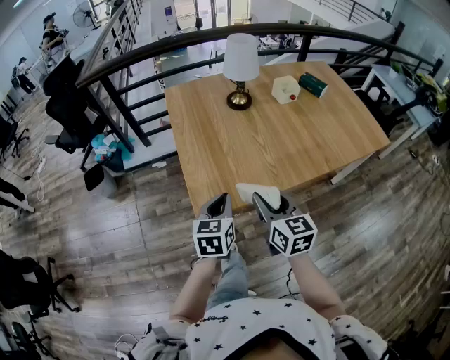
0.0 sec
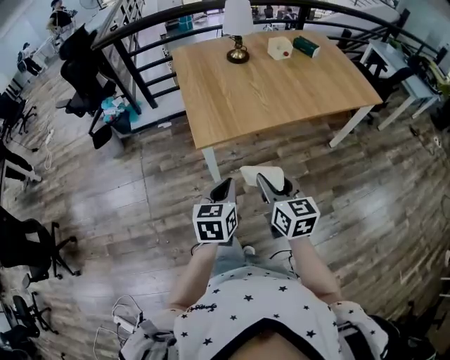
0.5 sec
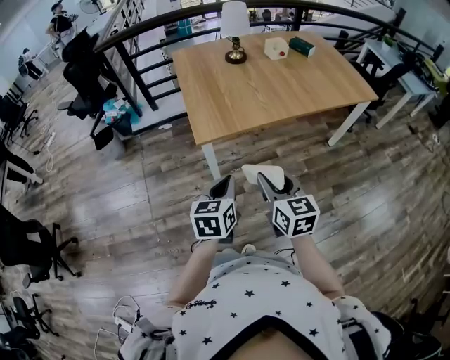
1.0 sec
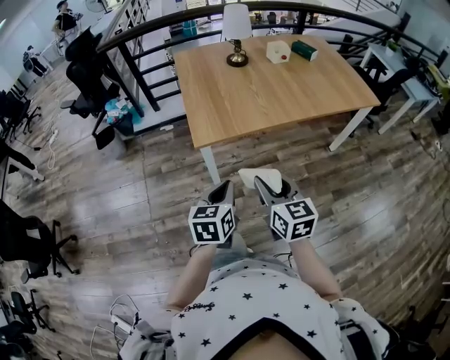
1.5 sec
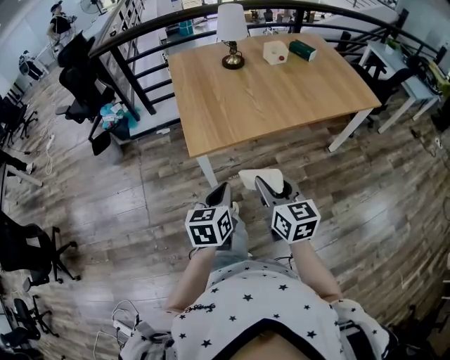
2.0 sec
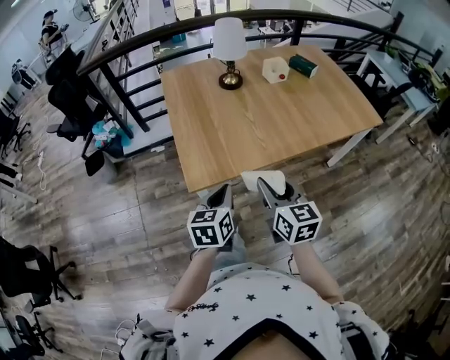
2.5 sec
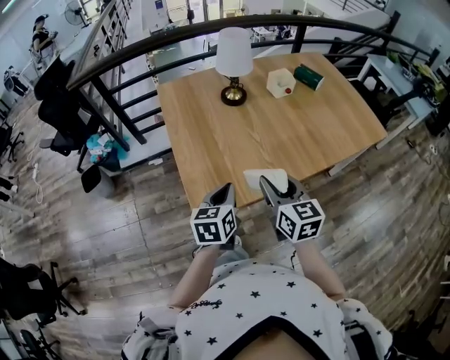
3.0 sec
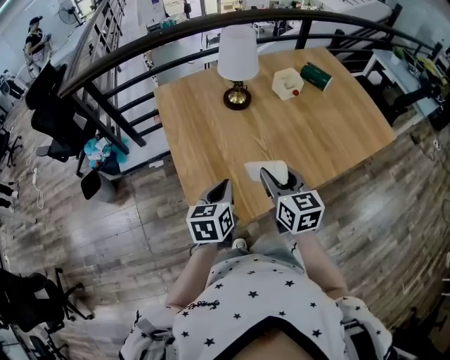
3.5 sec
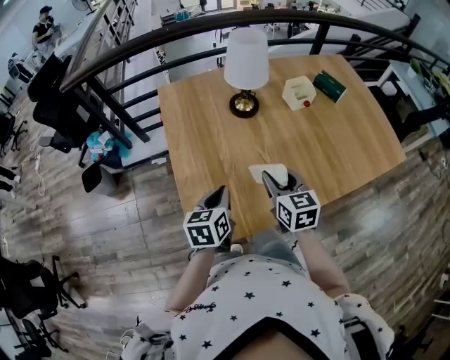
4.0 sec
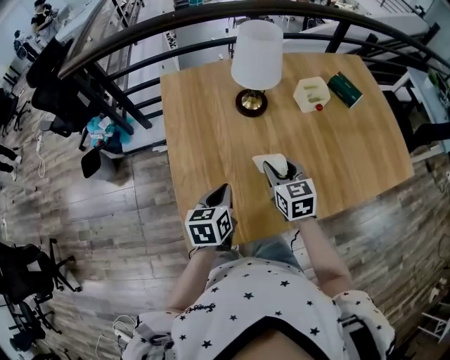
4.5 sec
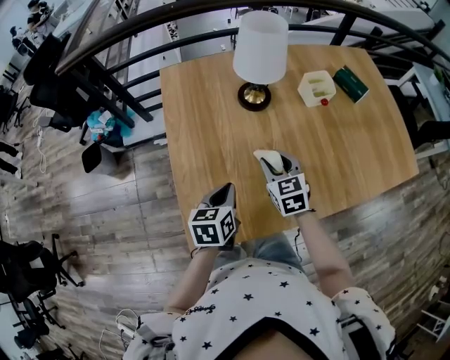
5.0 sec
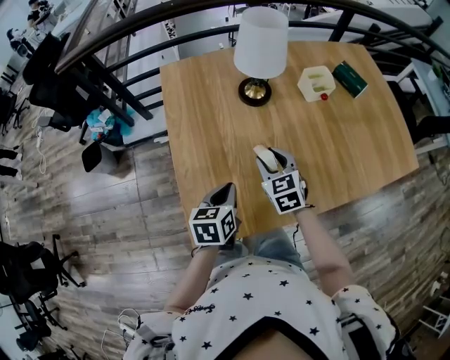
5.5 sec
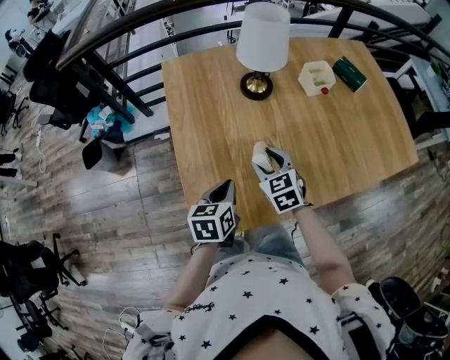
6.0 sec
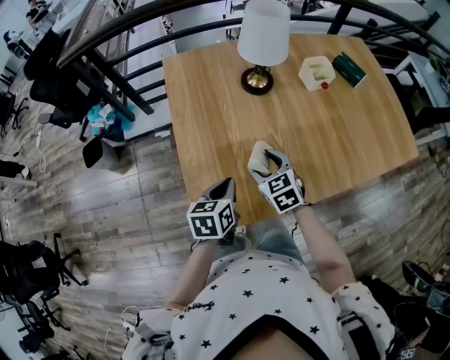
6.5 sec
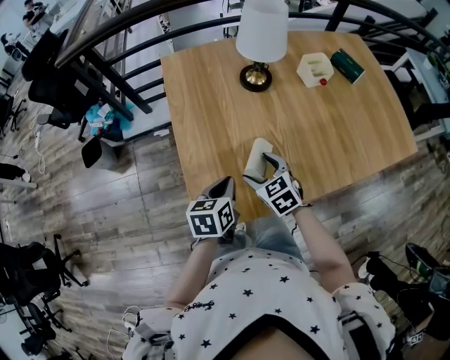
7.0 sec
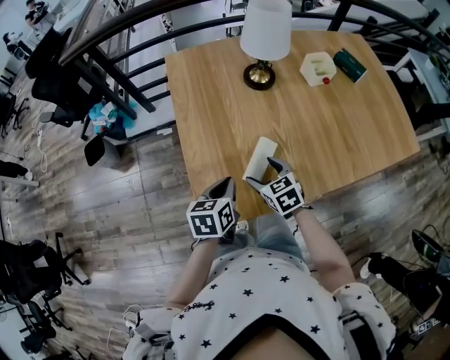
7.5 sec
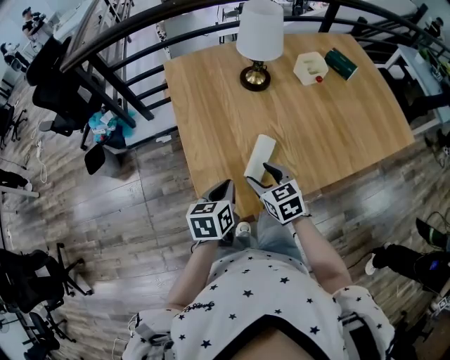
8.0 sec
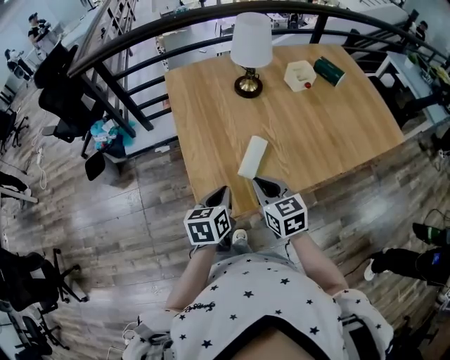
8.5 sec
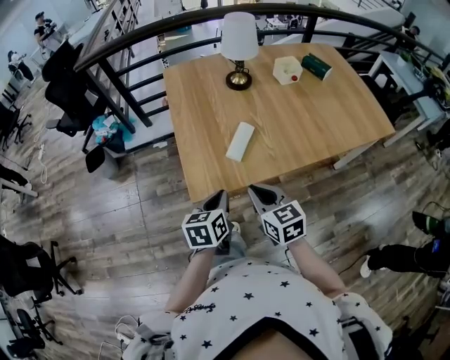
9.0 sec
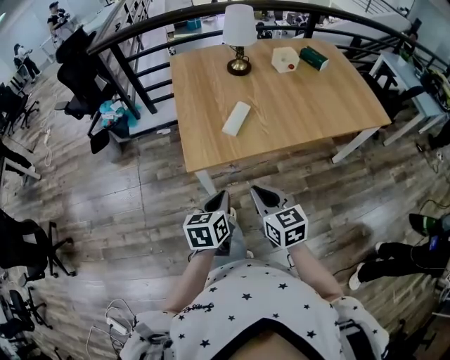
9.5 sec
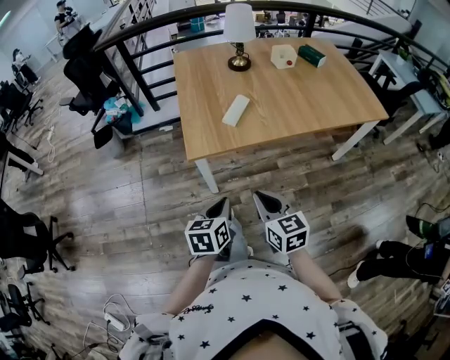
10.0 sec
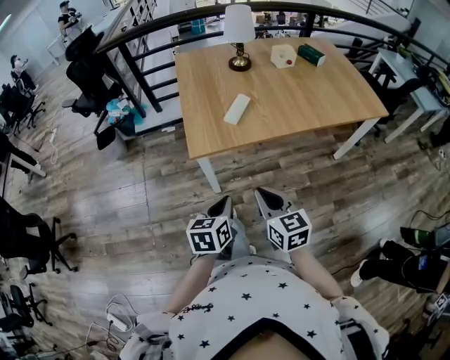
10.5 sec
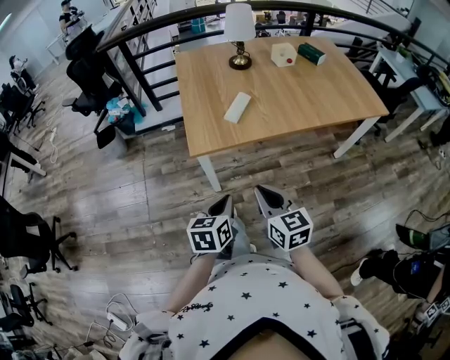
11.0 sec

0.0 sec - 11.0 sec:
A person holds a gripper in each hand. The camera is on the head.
0.0 sec - 2.0 sec: The two grippers go about 20 cm backward.
2.0 sec - 3.5 sec: The grippers both shift forward by approximately 35 cm.
3.5 sec - 5.5 sec: The left gripper goes roughly 10 cm forward and downward. Meanwhile the right gripper shifts about 20 cm forward and downward, and rotates some 30 degrees.
5.5 sec - 7.5 sec: The right gripper shifts some 15 cm backward, downward and to the left, and opens its fingers. The left gripper moves about 5 cm.
7.5 sec - 9.0 sec: The right gripper heads backward and upward, covering roughly 25 cm, rotates approximately 20 degrees, and closes; the left gripper is displaced backward by approximately 15 cm.
9.0 sec - 11.0 sec: The two grippers go some 20 cm backward.

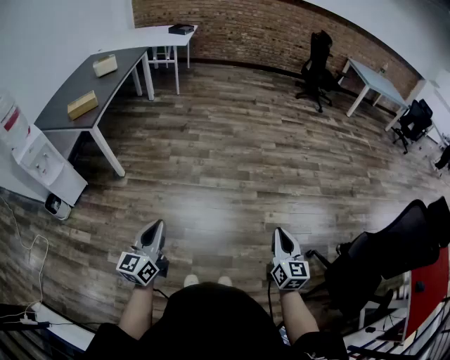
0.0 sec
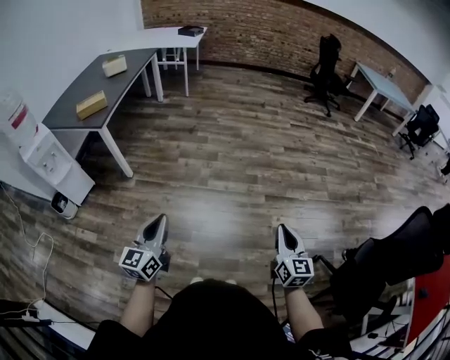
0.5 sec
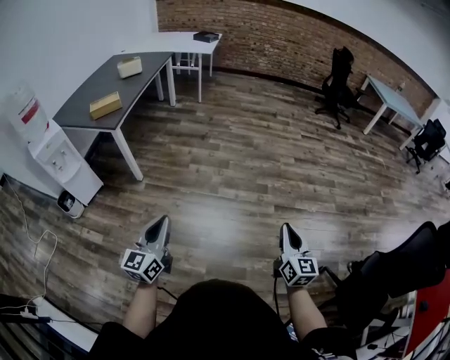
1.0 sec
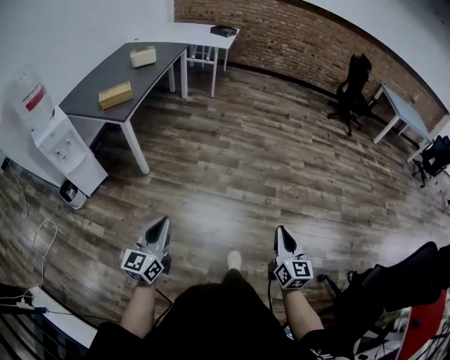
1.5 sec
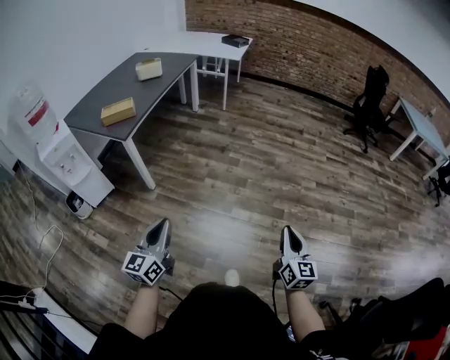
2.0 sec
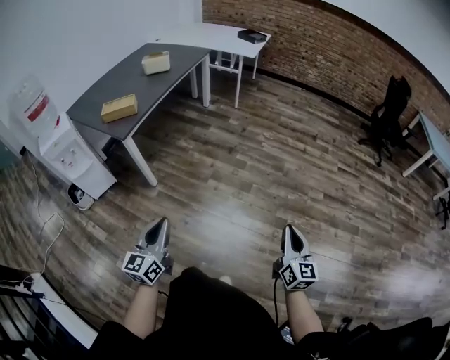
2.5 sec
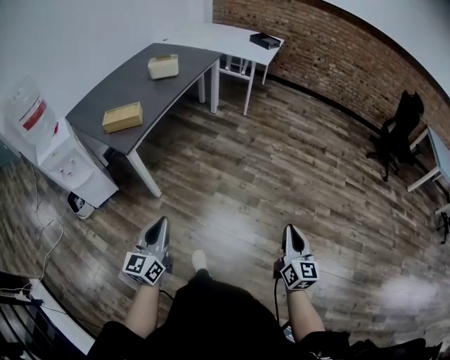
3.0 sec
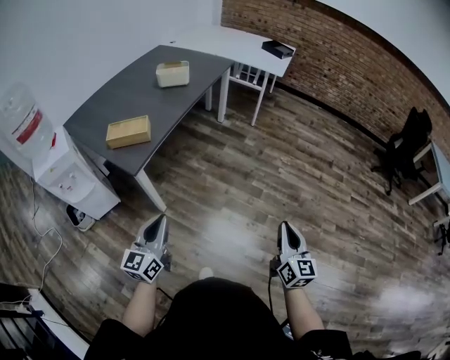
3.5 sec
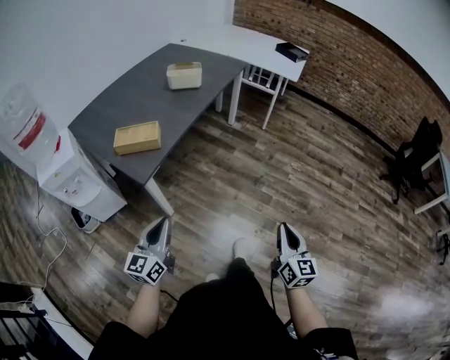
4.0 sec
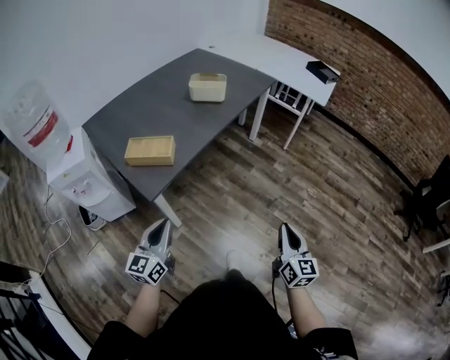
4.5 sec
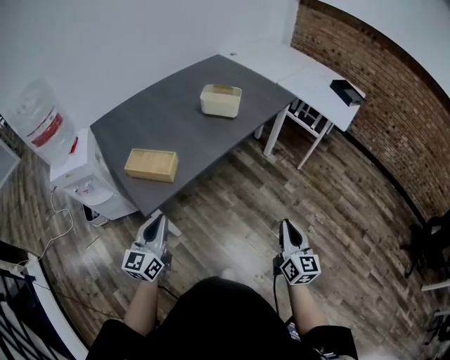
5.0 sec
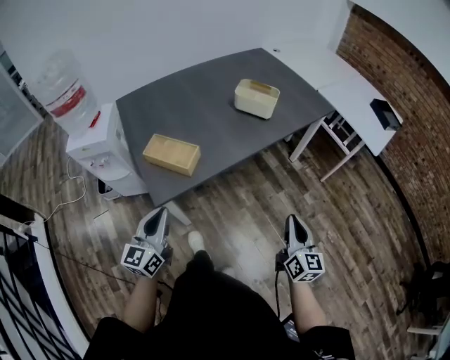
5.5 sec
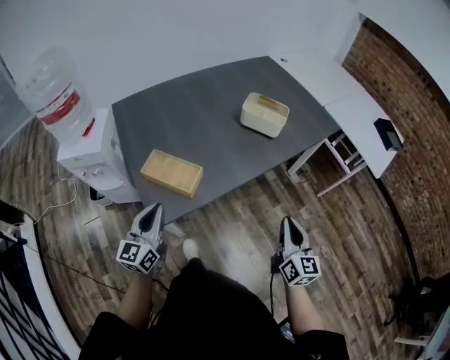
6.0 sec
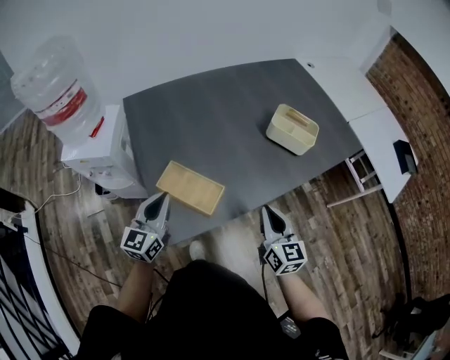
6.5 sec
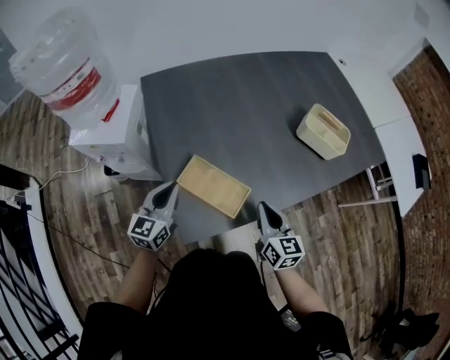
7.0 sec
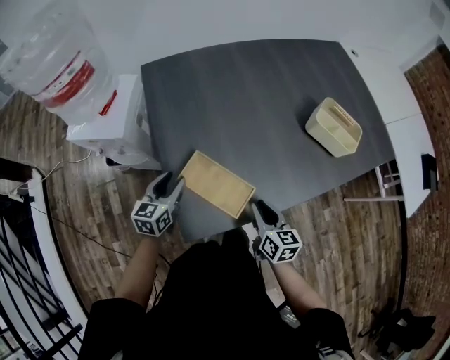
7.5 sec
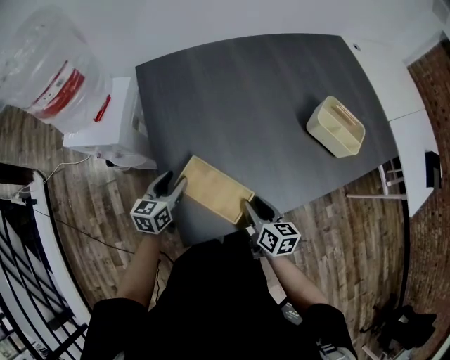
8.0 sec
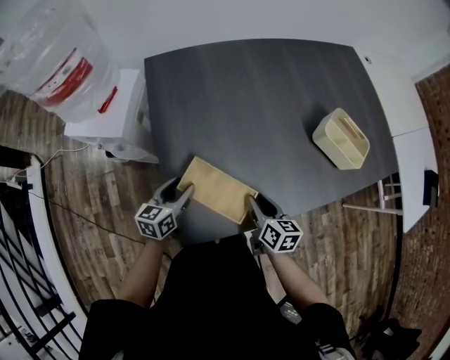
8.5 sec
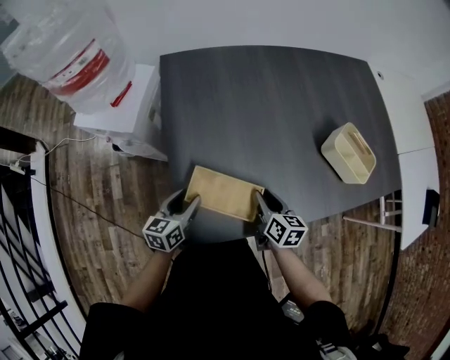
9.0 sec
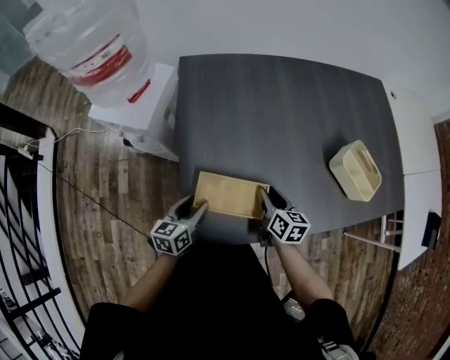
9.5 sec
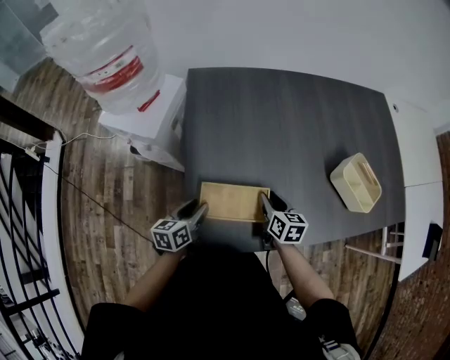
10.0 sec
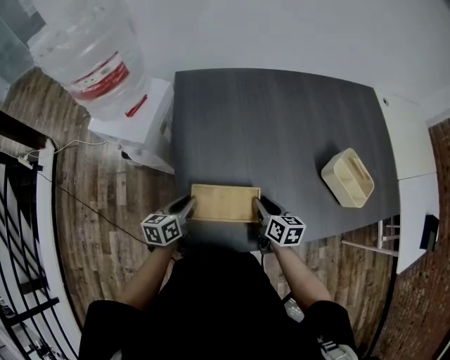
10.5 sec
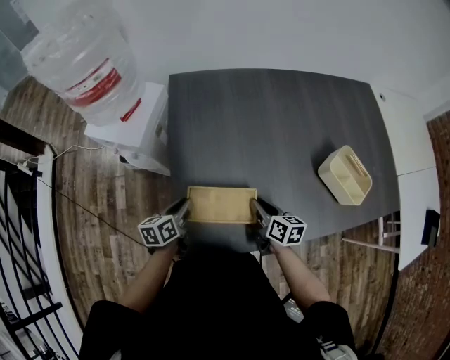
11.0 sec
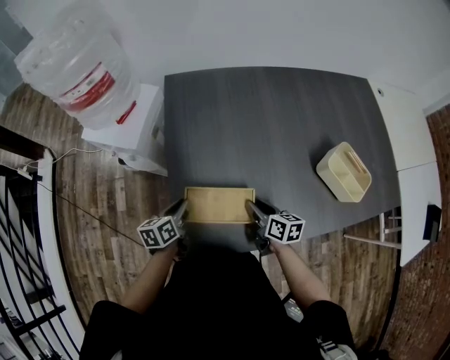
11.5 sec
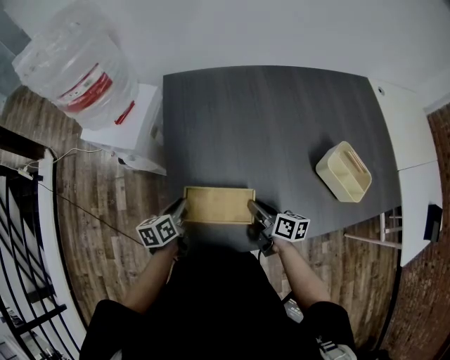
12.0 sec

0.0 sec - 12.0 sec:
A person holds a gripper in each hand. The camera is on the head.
0.0 sec - 2.0 sec: The two grippers go about 25 cm forward and to the left.
2.0 sec - 4.0 sec: Both grippers travel together forward and to the left, roughly 40 cm.
4.0 sec - 6.0 sec: The right gripper shifts by roughly 40 cm, and changes its angle by about 30 degrees. The left gripper ends up approximately 25 cm from where it was, and swivels approximately 30 degrees.
6.0 sec - 8.0 sec: The left gripper heads forward, downward and to the left, covering about 25 cm, changes its angle by some 30 degrees, and opens; the right gripper moves to the left, forward and downward, some 35 cm, swivels some 40 degrees, and opens its fingers.
8.0 sec - 10.0 sec: The left gripper shifts some 5 cm backward, and swivels some 20 degrees; the right gripper goes roughly 10 cm forward.
10.0 sec - 12.0 sec: The right gripper changes its angle by some 30 degrees. Meanwhile the left gripper closes.

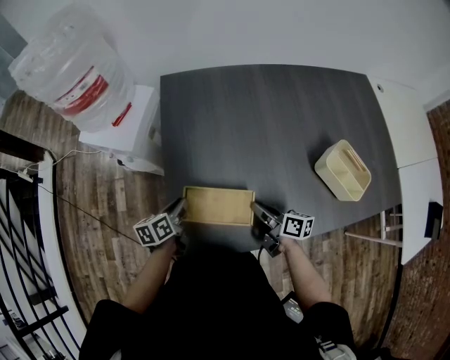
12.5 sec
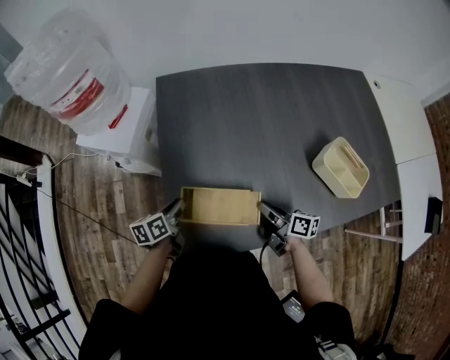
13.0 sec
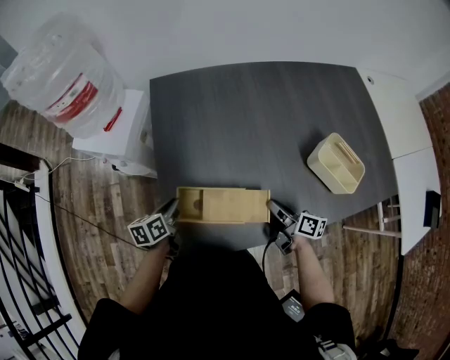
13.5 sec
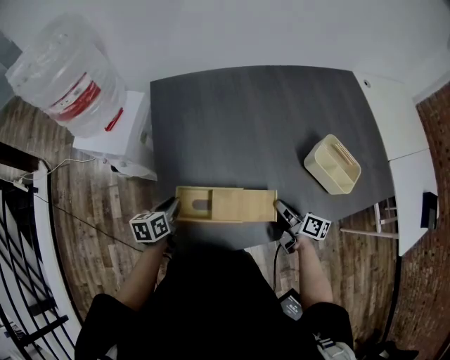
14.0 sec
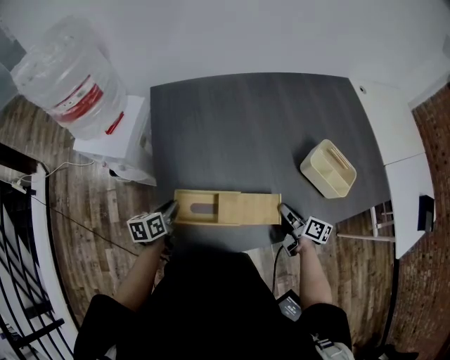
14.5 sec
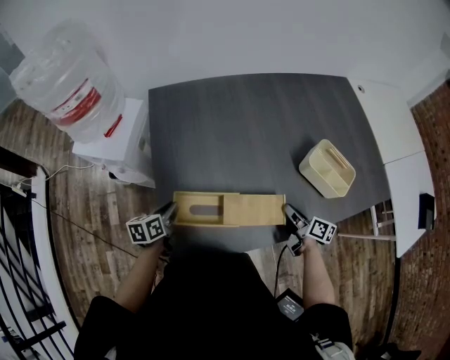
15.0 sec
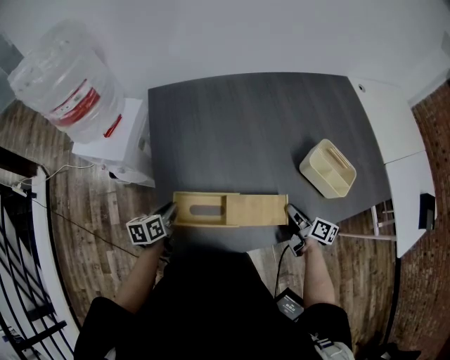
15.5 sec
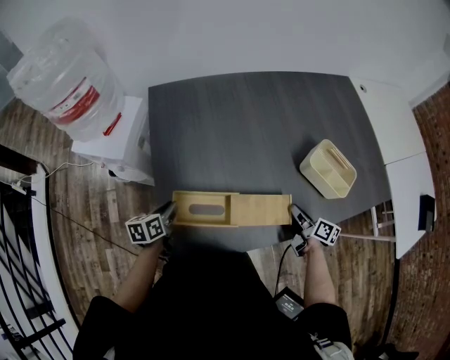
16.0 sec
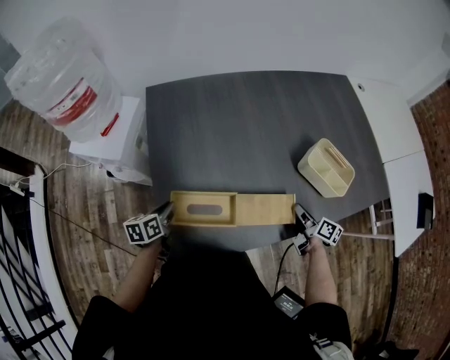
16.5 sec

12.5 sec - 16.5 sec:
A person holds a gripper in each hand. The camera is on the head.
12.5 sec - 14.5 sec: The right gripper is displaced to the right by roughly 15 cm.
14.5 sec - 16.5 sec: The right gripper moves to the right, approximately 10 cm.
